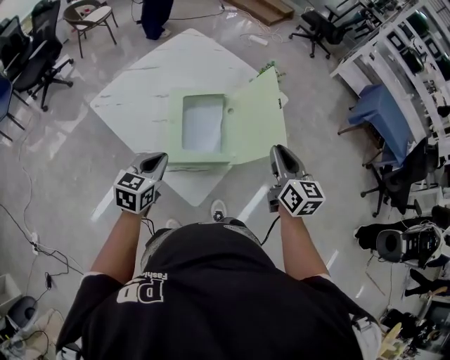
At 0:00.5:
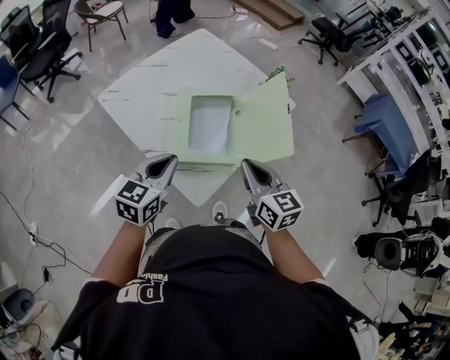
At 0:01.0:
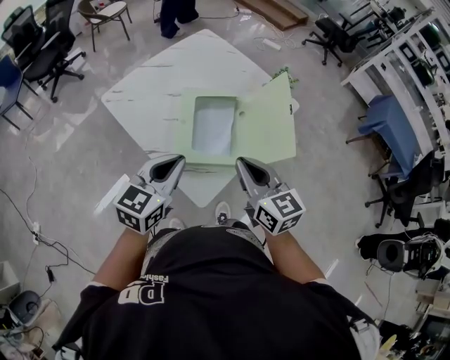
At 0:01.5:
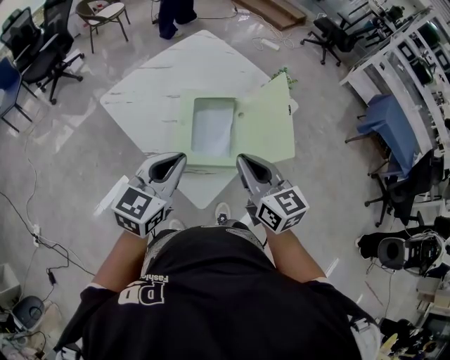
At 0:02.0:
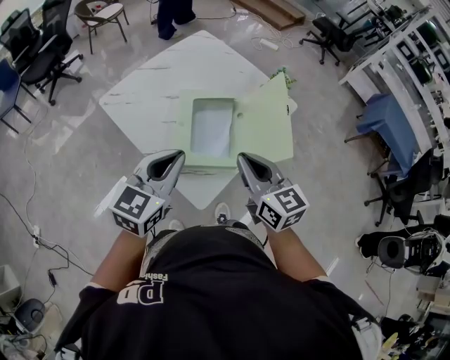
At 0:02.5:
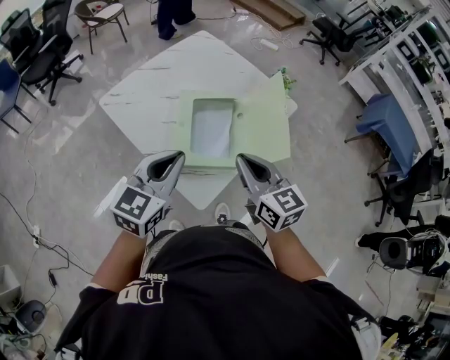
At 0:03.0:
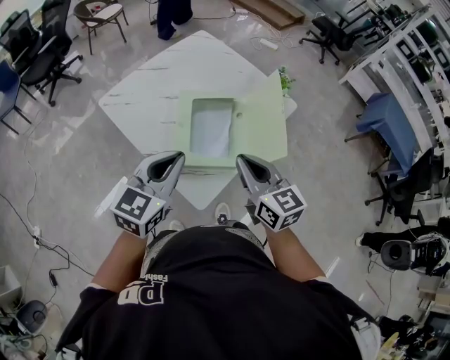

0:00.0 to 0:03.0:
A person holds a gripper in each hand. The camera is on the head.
0:00.0 to 0:01.5: The right gripper goes about 15 cm to the left, and swivels roughly 20 degrees, while the left gripper shifts some 15 cm upward.
0:01.5 to 0:03.0: There are only small adjustments of the grippers.

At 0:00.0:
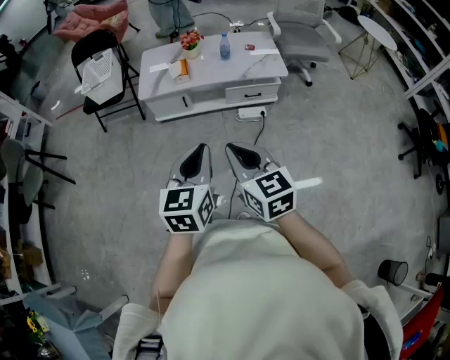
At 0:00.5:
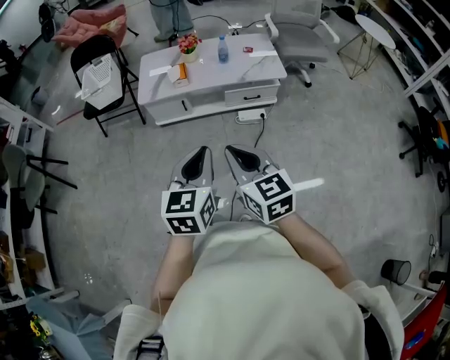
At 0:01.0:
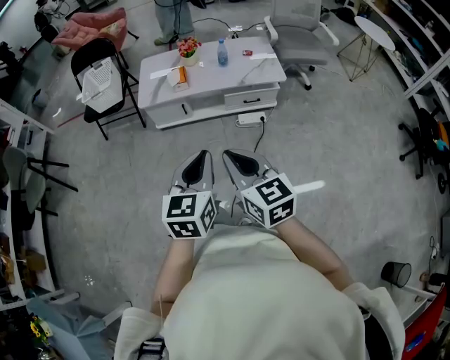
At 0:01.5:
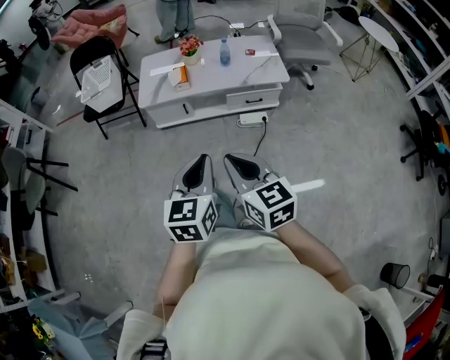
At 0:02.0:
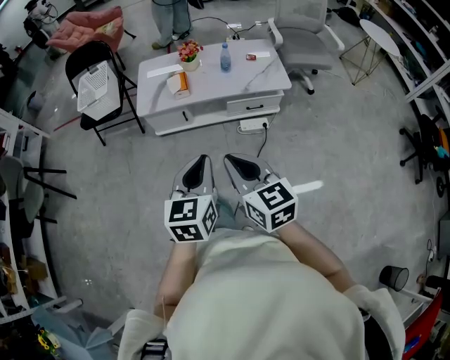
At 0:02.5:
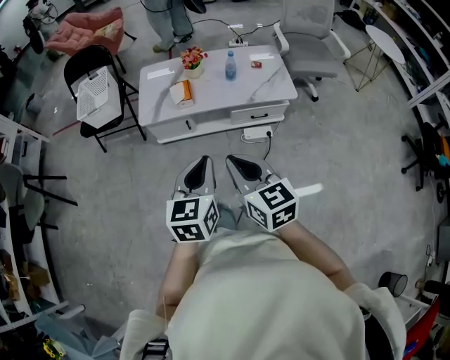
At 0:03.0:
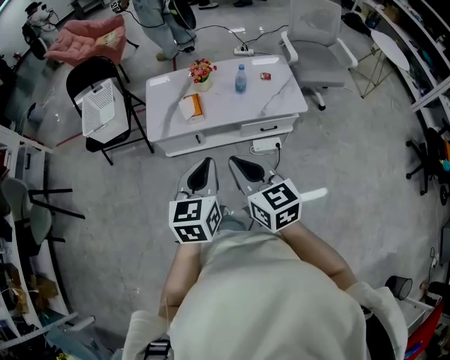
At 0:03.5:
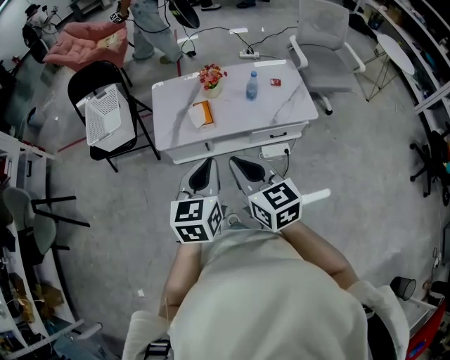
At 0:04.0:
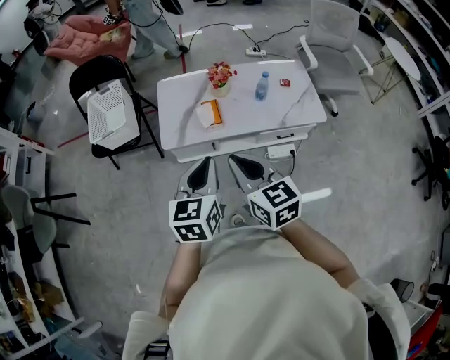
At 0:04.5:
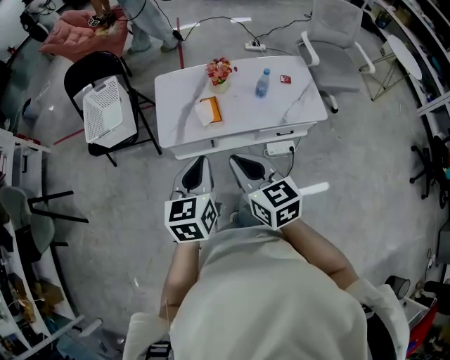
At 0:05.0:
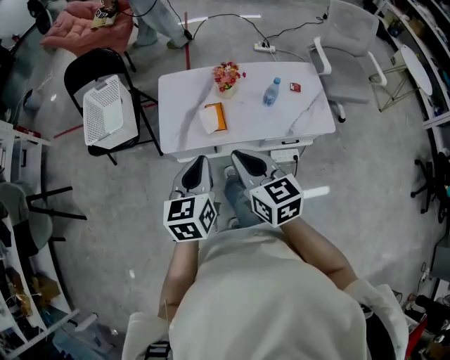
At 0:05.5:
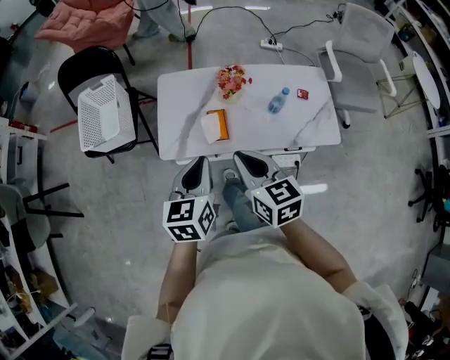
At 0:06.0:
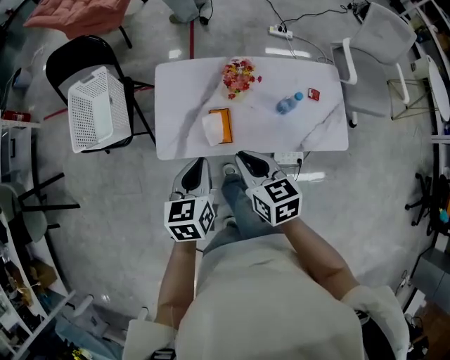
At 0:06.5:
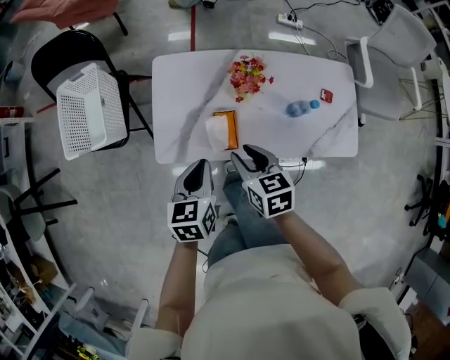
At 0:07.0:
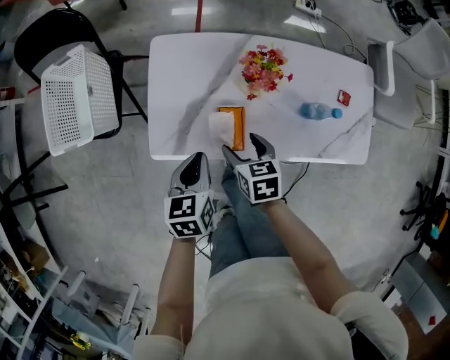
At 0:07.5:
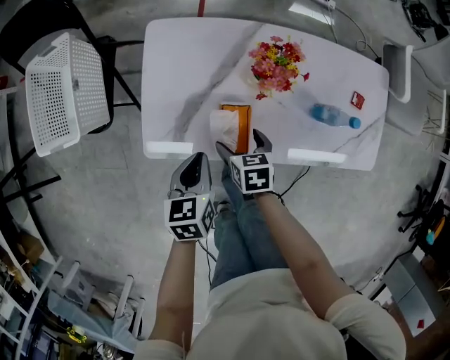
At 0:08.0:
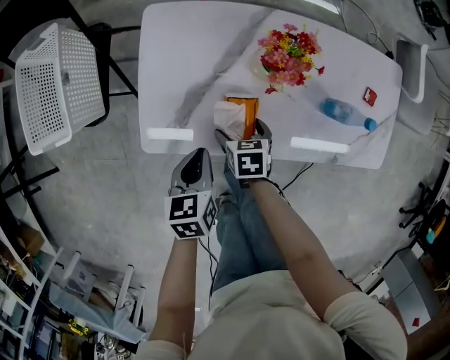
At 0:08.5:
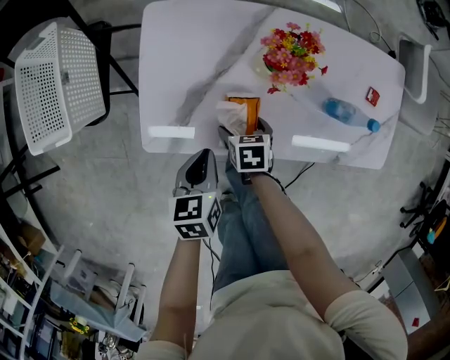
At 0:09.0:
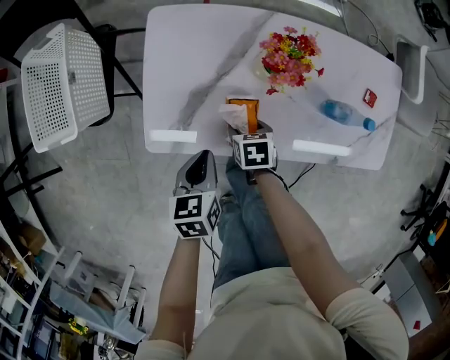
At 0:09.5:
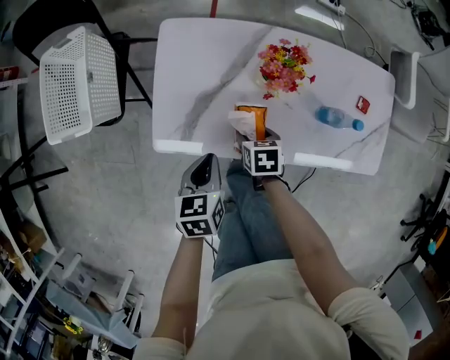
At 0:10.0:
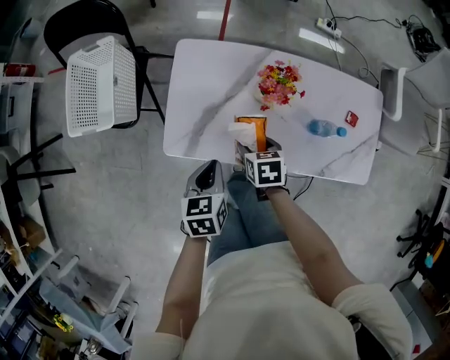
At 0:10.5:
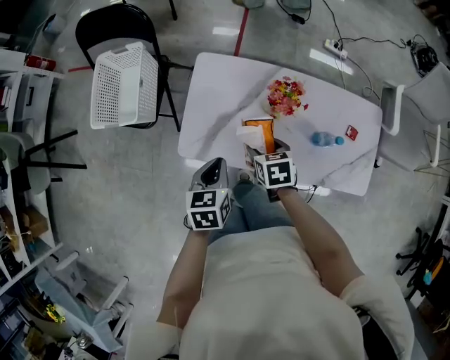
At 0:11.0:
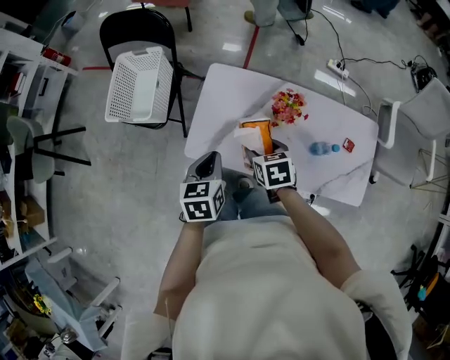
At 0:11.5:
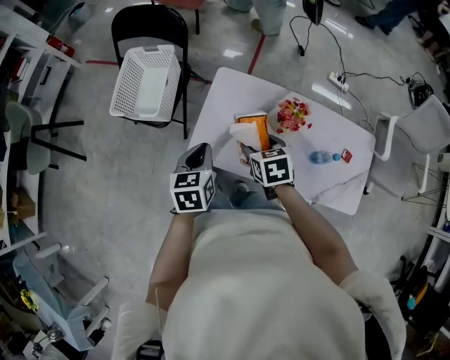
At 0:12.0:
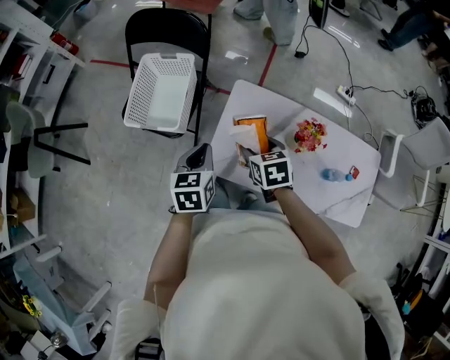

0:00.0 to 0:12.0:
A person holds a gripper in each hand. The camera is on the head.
0:00.0 to 0:02.0: The grippers both shift forward by some 10 cm.
0:02.0 to 0:04.0: Both grippers move forward and to the left, some 30 cm.
0:04.0 to 0:06.0: Both grippers move forward and downward, about 30 cm.
0:06.0 to 0:08.0: The grippers both shift downward by approximately 30 cm. The left gripper changes its angle by approximately 20 degrees. The right gripper tilts its fingers roughly 30 degrees downward, and opens up.
0:08.0 to 0:10.0: The two grippers go roughly 10 cm upward. The right gripper closes its fingers.
0:10.0 to 0:12.0: The right gripper shifts about 25 cm upward, to the left and forward, and turns by some 20 degrees; the left gripper shifts some 25 cm to the left, upward and forward.

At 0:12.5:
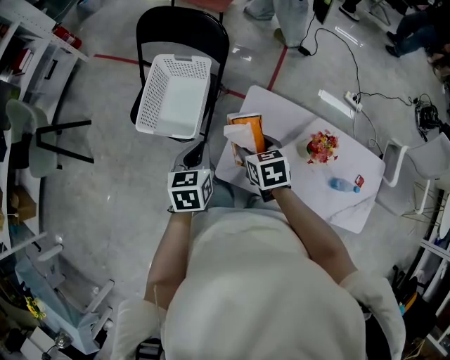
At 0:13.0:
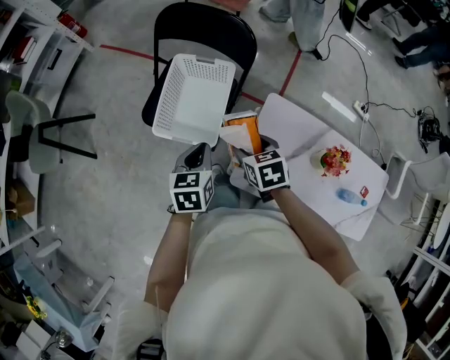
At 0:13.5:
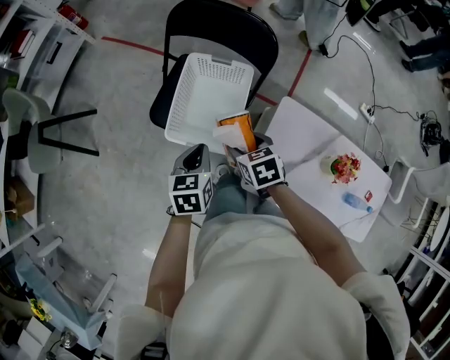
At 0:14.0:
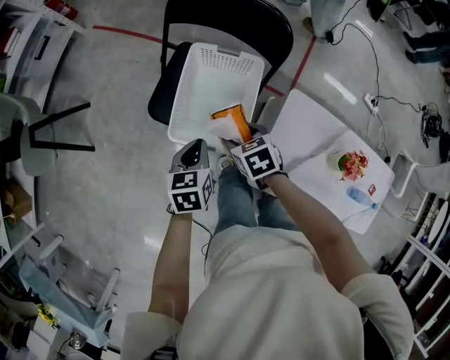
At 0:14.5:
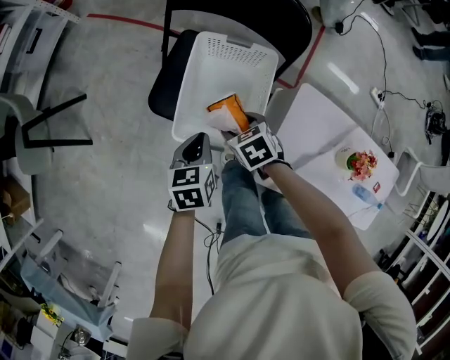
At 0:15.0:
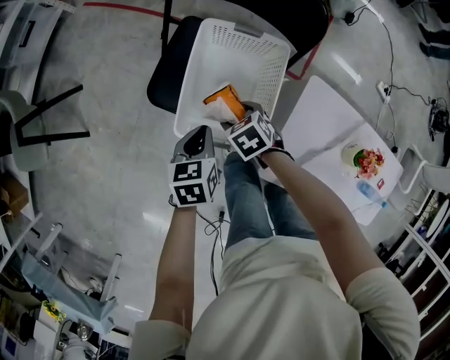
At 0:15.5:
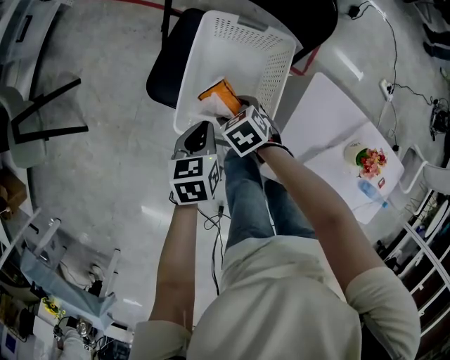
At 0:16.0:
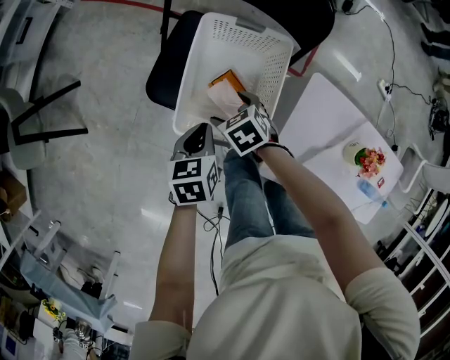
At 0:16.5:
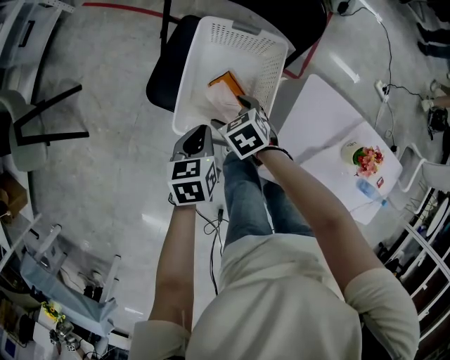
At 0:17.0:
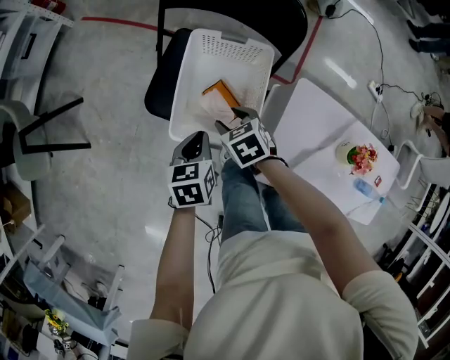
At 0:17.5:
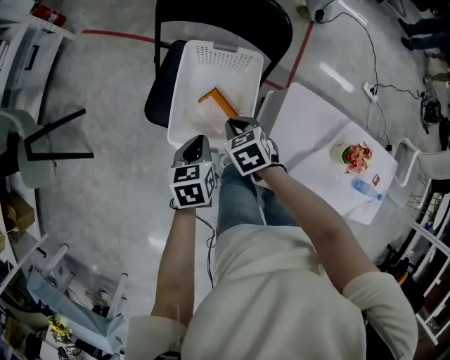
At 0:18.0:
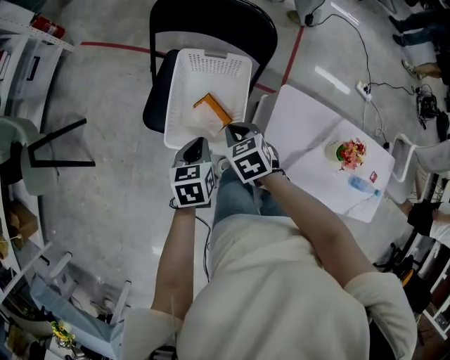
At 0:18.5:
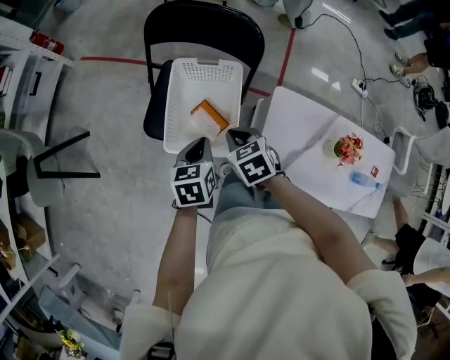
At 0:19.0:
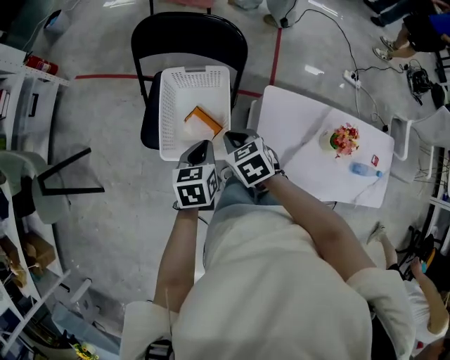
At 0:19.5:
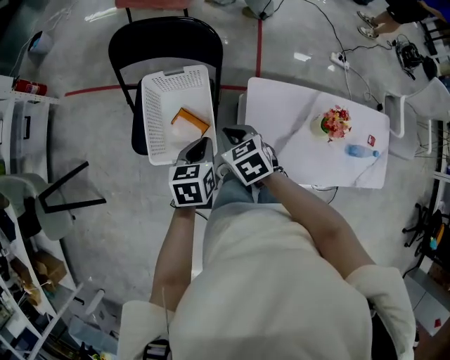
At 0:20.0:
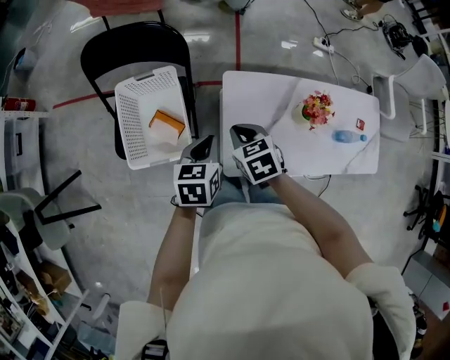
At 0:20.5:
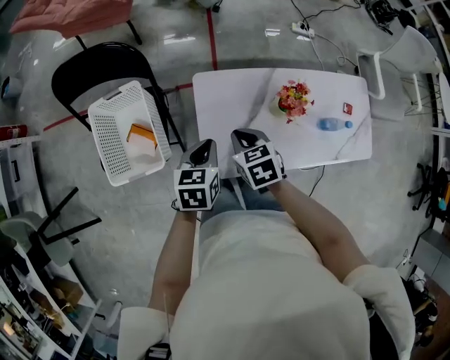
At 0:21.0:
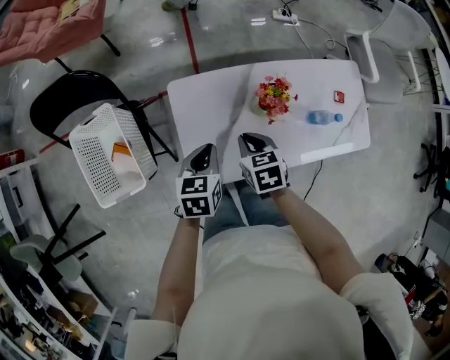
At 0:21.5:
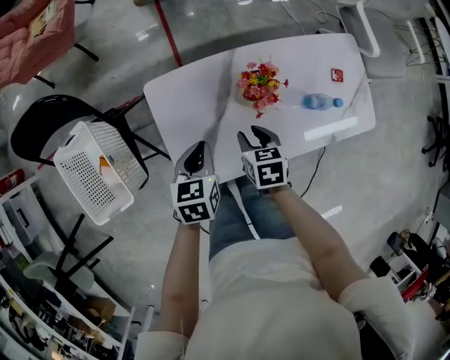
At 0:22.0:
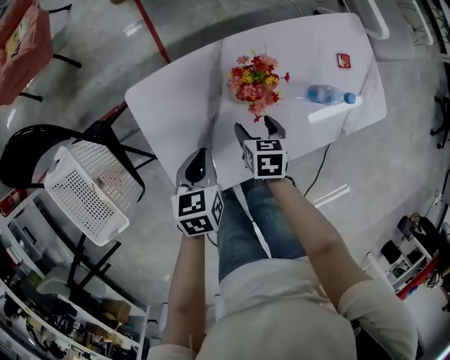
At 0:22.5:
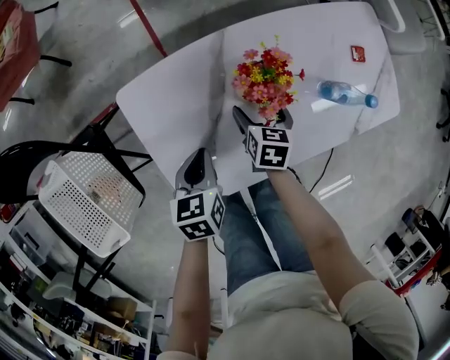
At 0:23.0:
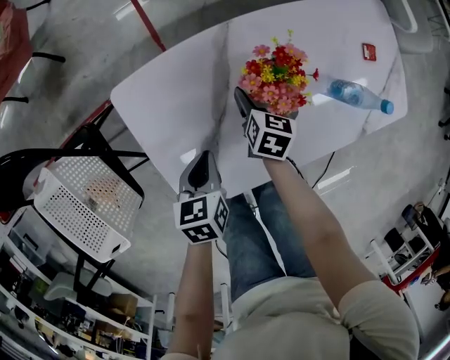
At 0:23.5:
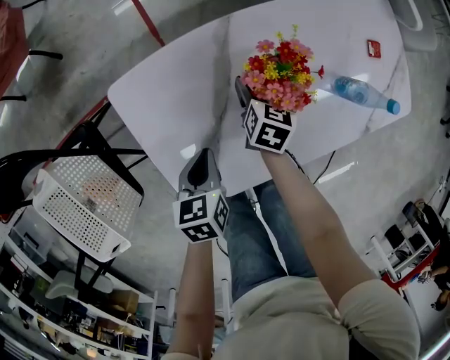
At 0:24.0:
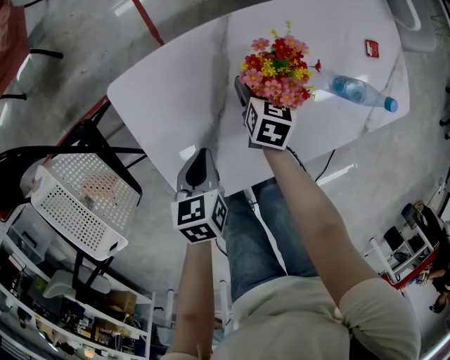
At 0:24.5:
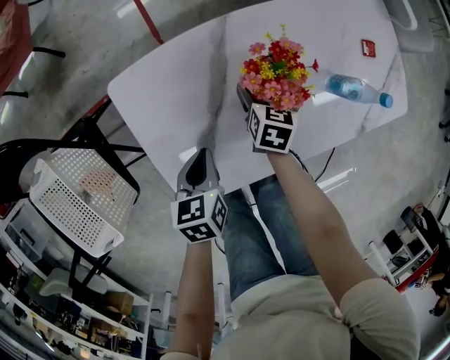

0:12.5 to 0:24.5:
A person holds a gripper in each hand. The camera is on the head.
0:12.5 to 0:14.5: Both grippers travel together to the left, forward and downward, approximately 30 cm. The right gripper rotates approximately 20 degrees.
0:14.5 to 0:16.5: The right gripper changes place by about 5 cm.
0:16.5 to 0:18.5: The grippers both shift upward and to the right by approximately 15 cm. The right gripper closes.
0:18.5 to 0:20.5: The left gripper moves roughly 30 cm, and swivels about 30 degrees; the right gripper shifts by about 30 cm, and swivels about 30 degrees.
0:20.5 to 0:22.5: The two grippers go roughly 30 cm downward and to the right. The right gripper changes its angle by roughly 50 degrees, and opens.
0:22.5 to 0:24.5: The grippers move only a little.
